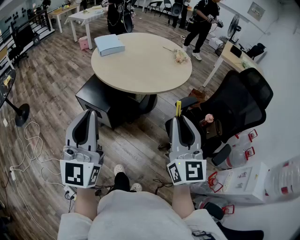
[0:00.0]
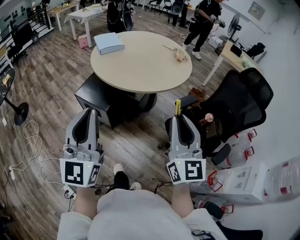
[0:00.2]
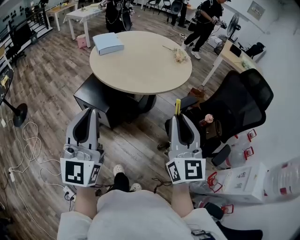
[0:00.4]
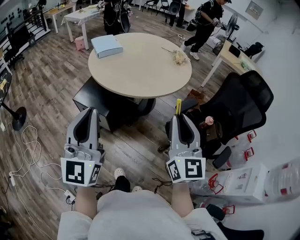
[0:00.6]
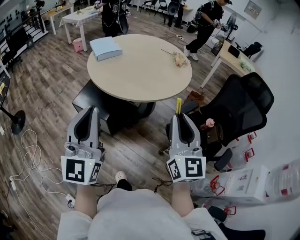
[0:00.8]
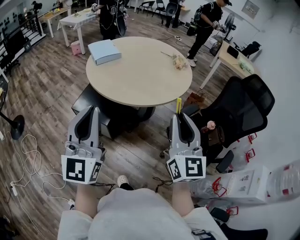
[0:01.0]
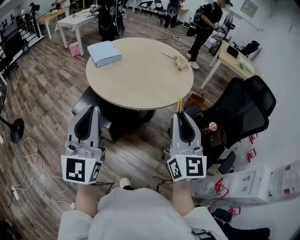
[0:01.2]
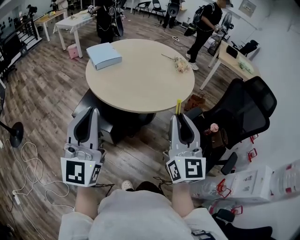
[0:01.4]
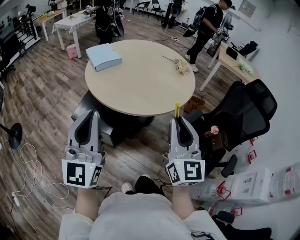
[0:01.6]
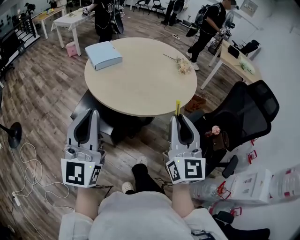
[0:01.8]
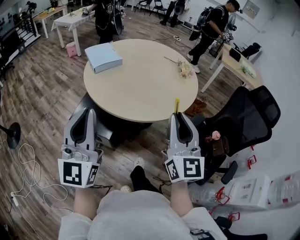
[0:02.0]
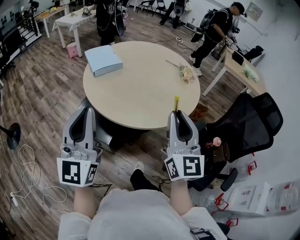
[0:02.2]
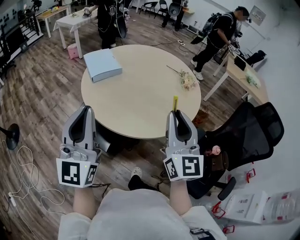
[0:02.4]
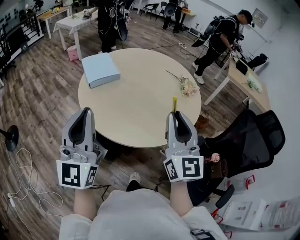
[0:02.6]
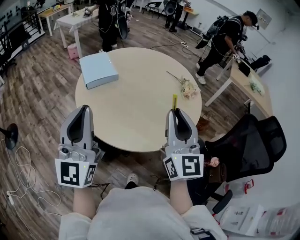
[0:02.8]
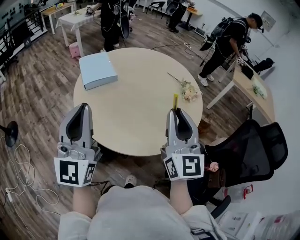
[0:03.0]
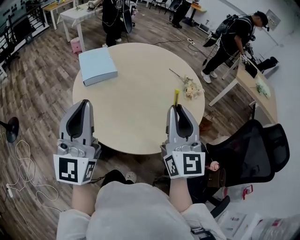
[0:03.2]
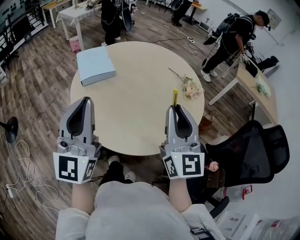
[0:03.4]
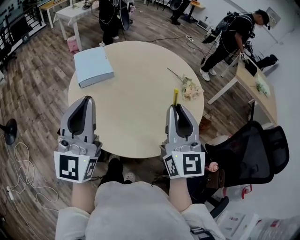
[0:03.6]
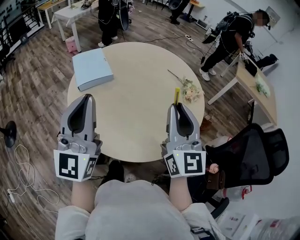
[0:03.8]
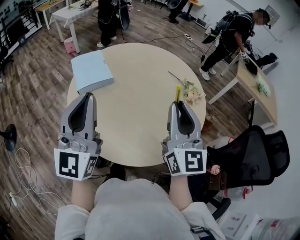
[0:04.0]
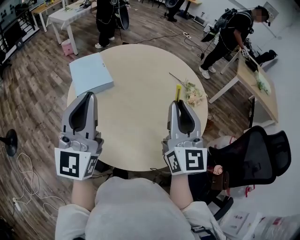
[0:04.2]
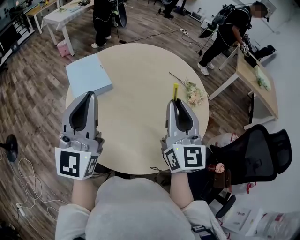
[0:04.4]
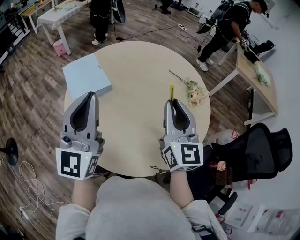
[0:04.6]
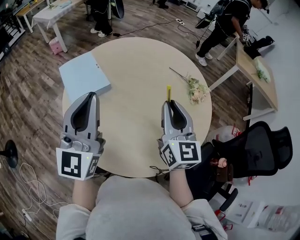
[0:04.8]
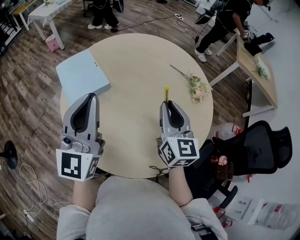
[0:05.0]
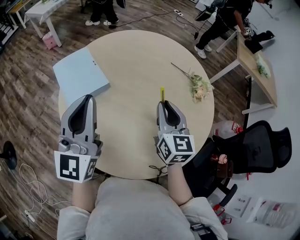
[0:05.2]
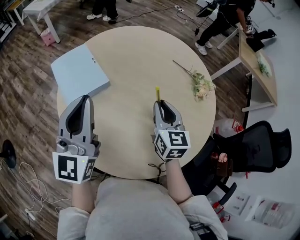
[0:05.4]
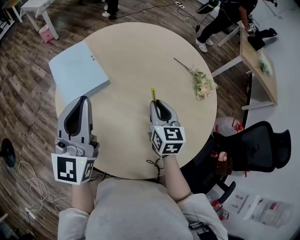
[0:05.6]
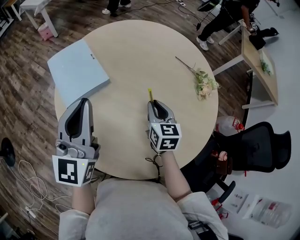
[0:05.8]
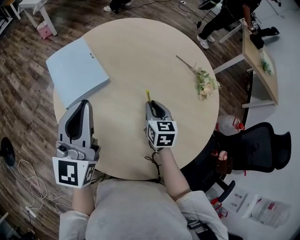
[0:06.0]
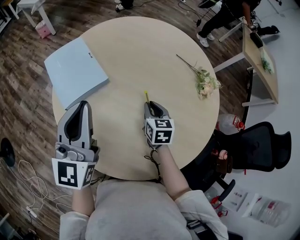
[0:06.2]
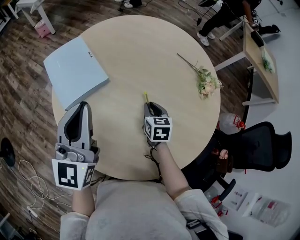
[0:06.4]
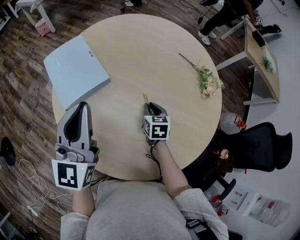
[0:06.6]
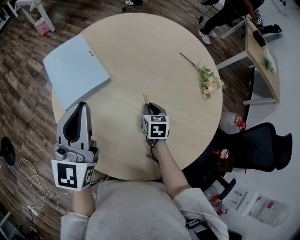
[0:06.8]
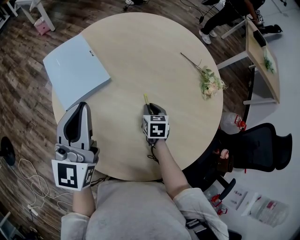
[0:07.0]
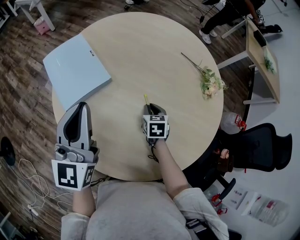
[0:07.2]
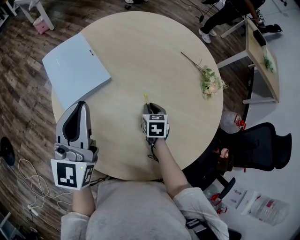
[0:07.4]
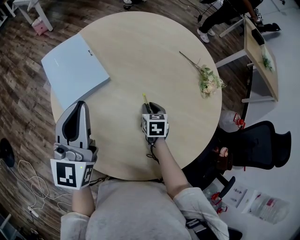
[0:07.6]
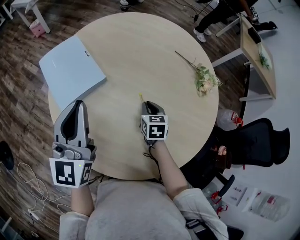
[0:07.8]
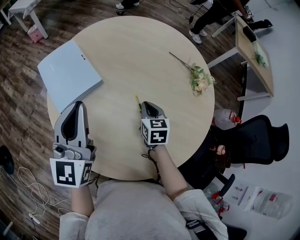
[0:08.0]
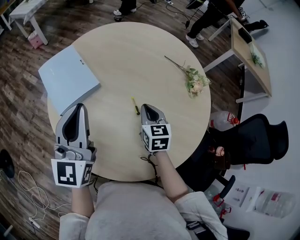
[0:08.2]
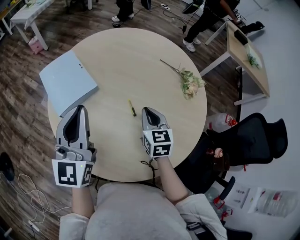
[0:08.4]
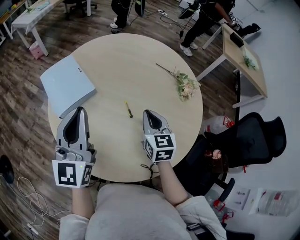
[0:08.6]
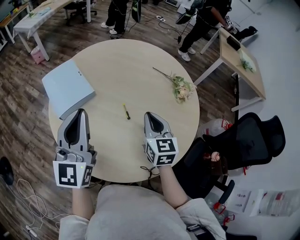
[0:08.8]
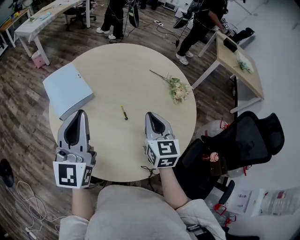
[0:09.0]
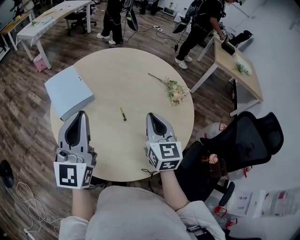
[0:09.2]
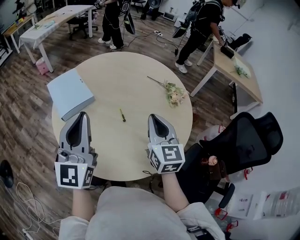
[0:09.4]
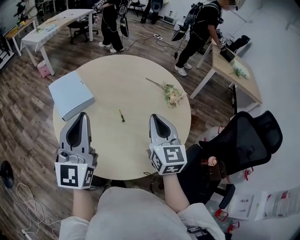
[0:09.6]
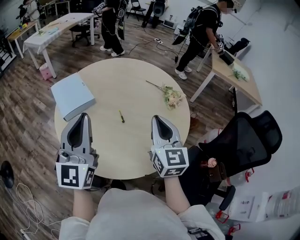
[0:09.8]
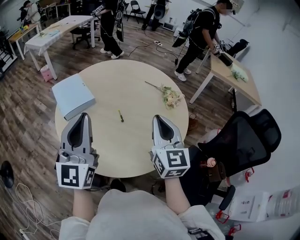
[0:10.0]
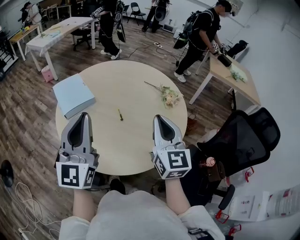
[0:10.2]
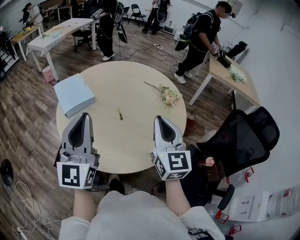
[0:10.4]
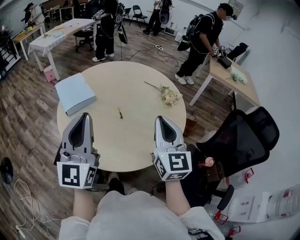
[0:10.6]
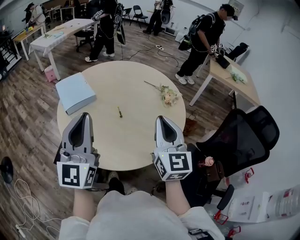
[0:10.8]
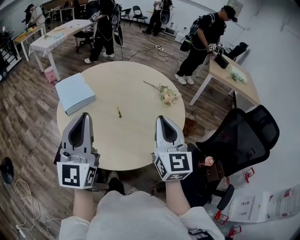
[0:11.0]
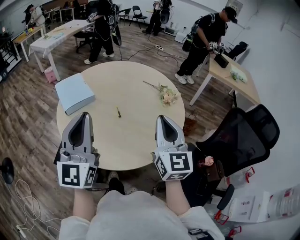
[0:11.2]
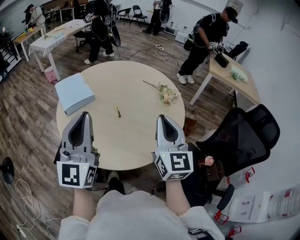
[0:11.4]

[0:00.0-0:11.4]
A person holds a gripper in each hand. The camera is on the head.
0.0 to 1.4 s: The two grippers go about 20 cm forward and to the left.
1.4 to 2.8 s: Both grippers travel together forward, approximately 30 cm.
2.8 to 4.2 s: The grippers both shift forward by approximately 20 cm.
4.2 to 5.6 s: The right gripper shifts some 30 cm downward and forward, and points its fingers about 30 degrees further downward. The left gripper heads forward, downward and to the left, covering approximately 20 cm.
5.6 to 7.2 s: The right gripper heads downward, covering about 20 cm, and turns by approximately 30 degrees. The left gripper travels downward by approximately 5 cm.
7.2 to 8.6 s: The right gripper moves upward, some 20 cm, and swivels about 30 degrees, while the left gripper moves to the right, backward and upward, approximately 10 cm.
8.6 to 10.0 s: The left gripper goes about 20 cm backward, upward and to the right. Meanwhile the right gripper moves upward, backward and to the right, approximately 25 cm, and turns by some 20 degrees.
10.0 to 11.4 s: The grippers both shift backward by some 5 cm.

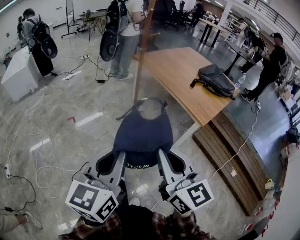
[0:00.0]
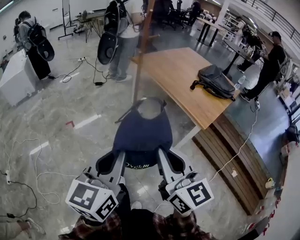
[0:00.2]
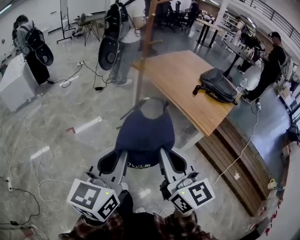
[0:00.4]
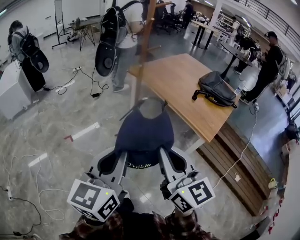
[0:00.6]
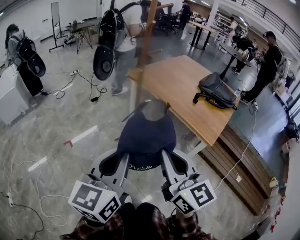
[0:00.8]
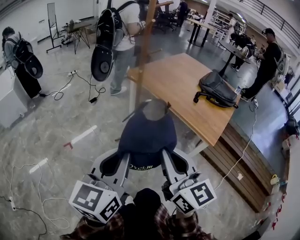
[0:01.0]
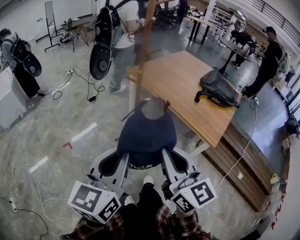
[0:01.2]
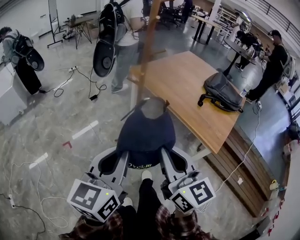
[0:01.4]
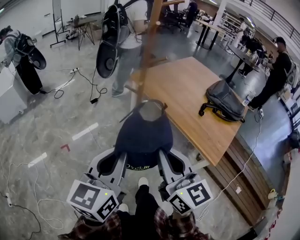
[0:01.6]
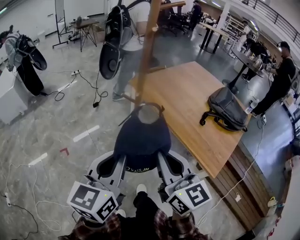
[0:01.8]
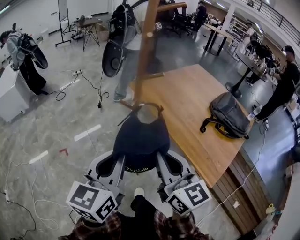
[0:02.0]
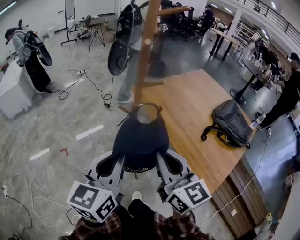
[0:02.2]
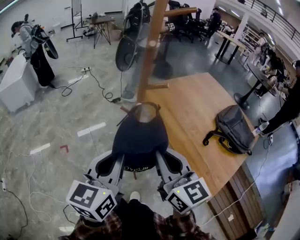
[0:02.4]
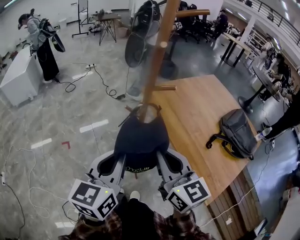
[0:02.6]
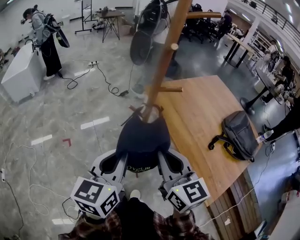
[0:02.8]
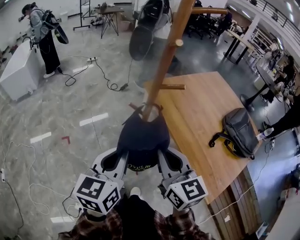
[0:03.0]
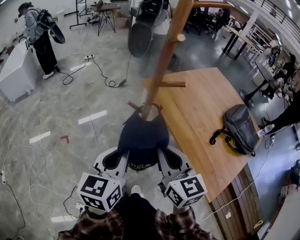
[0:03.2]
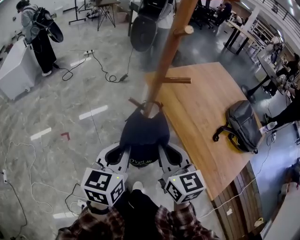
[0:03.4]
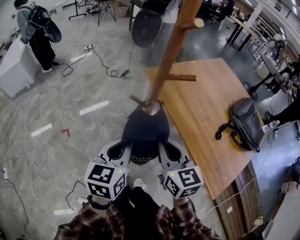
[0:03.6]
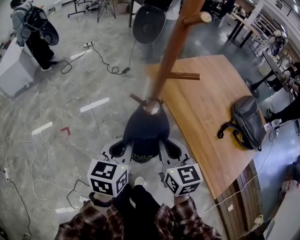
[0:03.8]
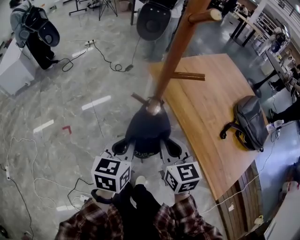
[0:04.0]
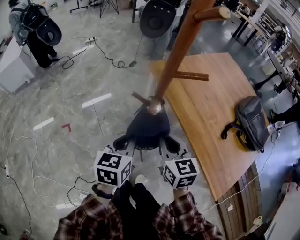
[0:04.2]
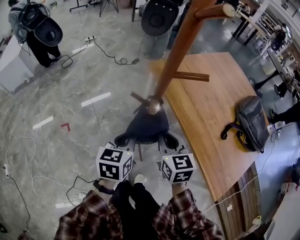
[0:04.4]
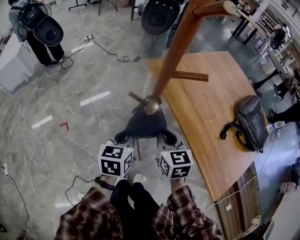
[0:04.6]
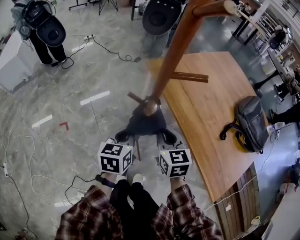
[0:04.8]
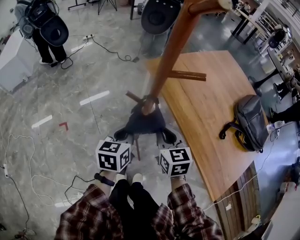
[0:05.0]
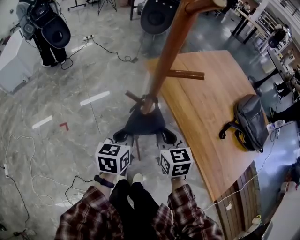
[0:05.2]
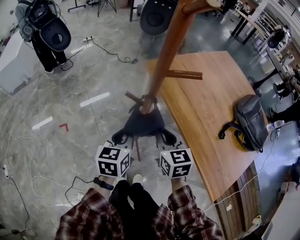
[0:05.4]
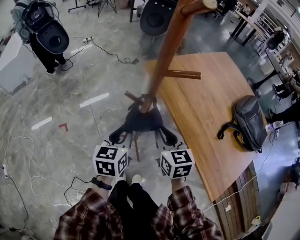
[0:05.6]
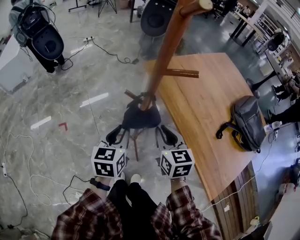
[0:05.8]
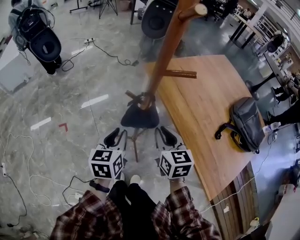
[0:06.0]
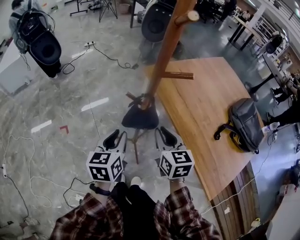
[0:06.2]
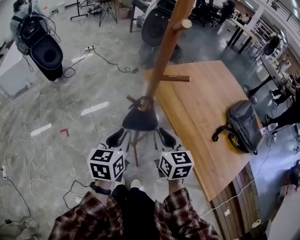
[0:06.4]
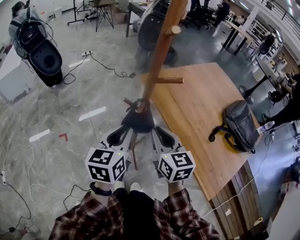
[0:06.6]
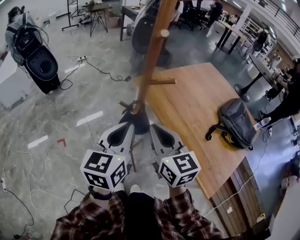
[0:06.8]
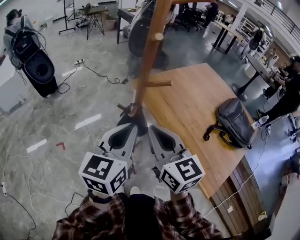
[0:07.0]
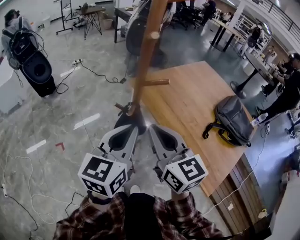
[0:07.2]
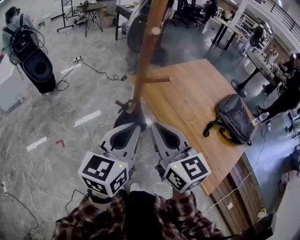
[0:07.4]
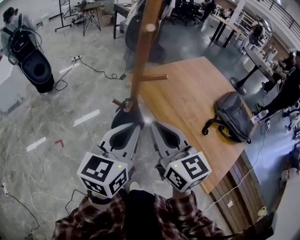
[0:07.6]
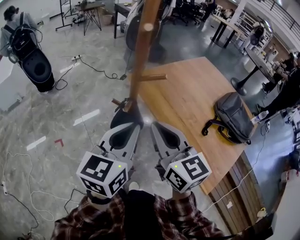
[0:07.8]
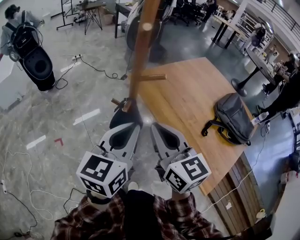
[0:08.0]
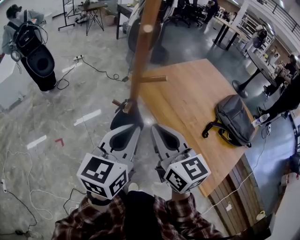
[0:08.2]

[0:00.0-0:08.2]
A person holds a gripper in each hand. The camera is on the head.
0.0 to 1.6 s: The grippers both shift forward by about 40 cm.
1.6 to 3.2 s: Both grippers move forward, about 20 cm.
3.2 to 5.0 s: The two grippers go some 20 cm downward and forward.
5.0 to 6.6 s: Both grippers travel together upward and backward, about 15 cm.
6.6 to 8.2 s: The left gripper goes about 10 cm upward and to the right. The right gripper travels upward by roughly 10 cm.

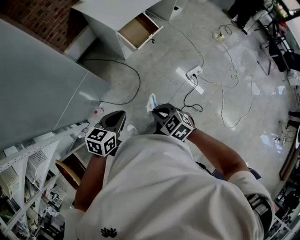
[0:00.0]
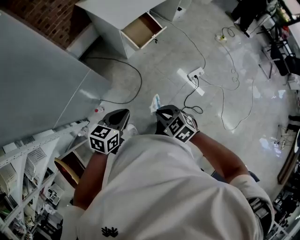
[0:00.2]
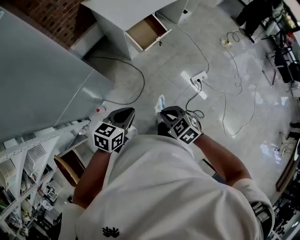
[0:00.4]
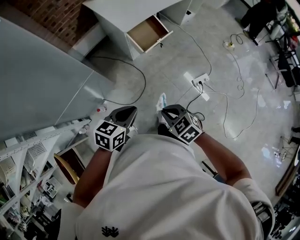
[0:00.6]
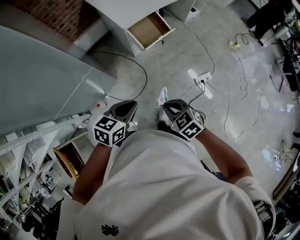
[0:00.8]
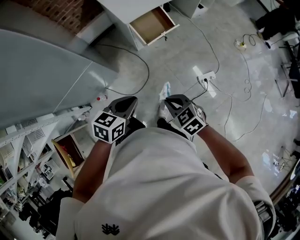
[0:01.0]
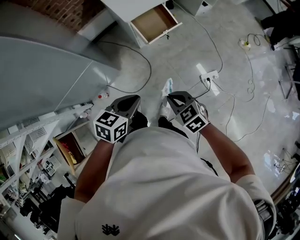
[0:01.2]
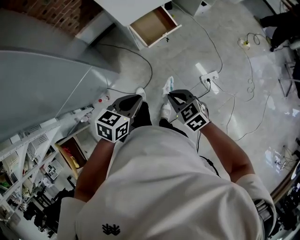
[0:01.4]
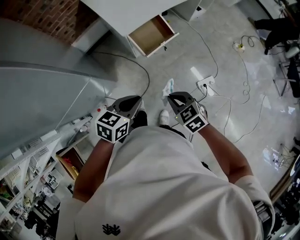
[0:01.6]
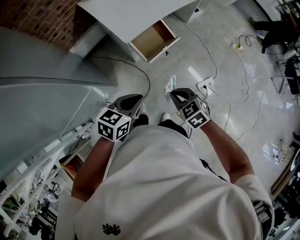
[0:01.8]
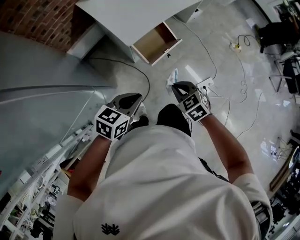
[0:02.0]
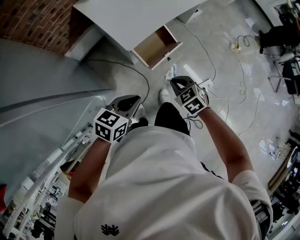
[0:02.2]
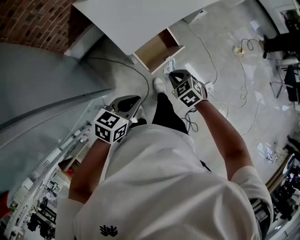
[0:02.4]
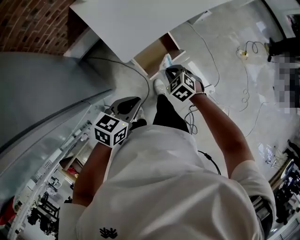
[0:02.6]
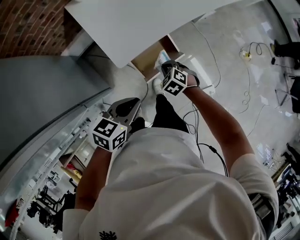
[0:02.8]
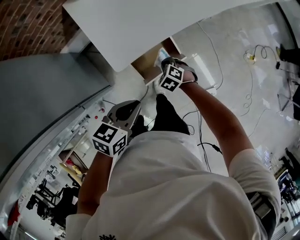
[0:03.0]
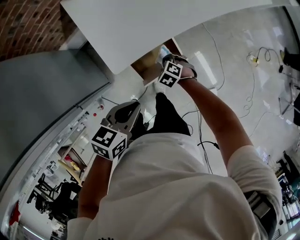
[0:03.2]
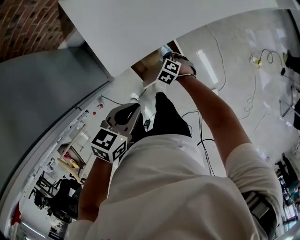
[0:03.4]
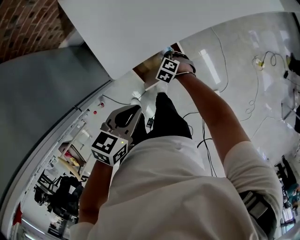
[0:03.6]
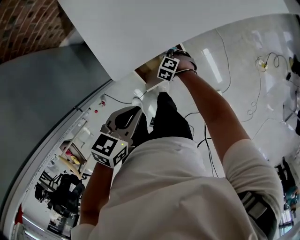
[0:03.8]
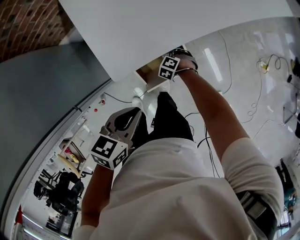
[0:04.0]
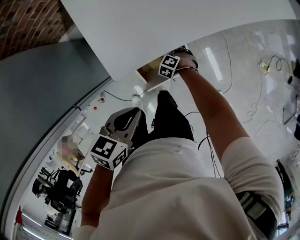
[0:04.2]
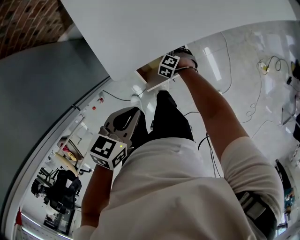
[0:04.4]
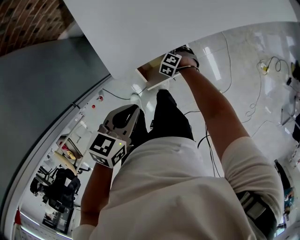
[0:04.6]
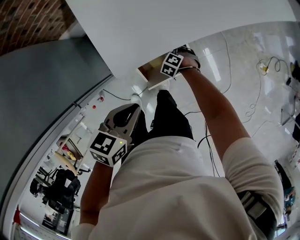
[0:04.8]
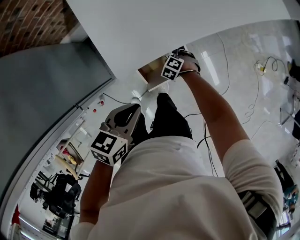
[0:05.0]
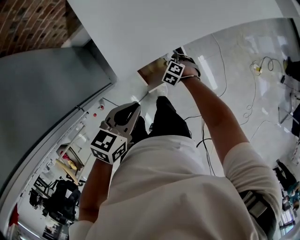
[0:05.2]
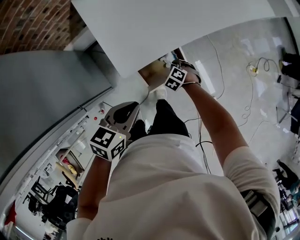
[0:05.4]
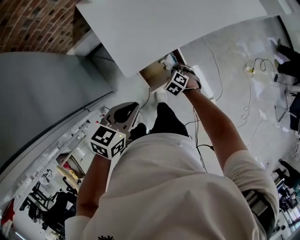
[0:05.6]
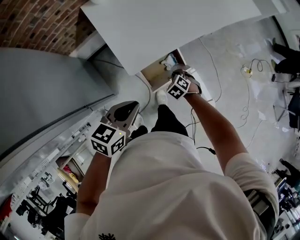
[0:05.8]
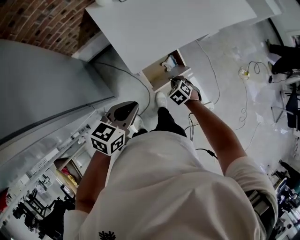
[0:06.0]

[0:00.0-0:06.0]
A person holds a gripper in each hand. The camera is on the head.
0.0 to 1.6 s: Both grippers move forward and to the right, some 25 cm.
1.6 to 3.0 s: The right gripper travels forward and downward by about 50 cm, and swivels about 30 degrees. The left gripper is displaced forward by about 35 cm.
3.0 to 4.4 s: The left gripper changes place by about 10 cm. The right gripper is displaced downward by about 20 cm, and turns by approximately 20 degrees.
4.4 to 6.0 s: The left gripper moves approximately 20 cm, while the right gripper travels upward by approximately 25 cm, and changes its angle by about 30 degrees.
